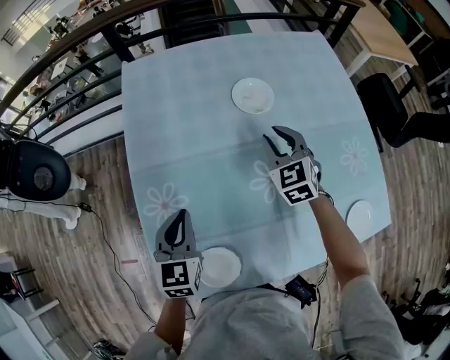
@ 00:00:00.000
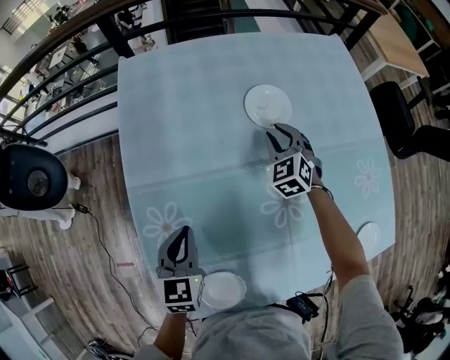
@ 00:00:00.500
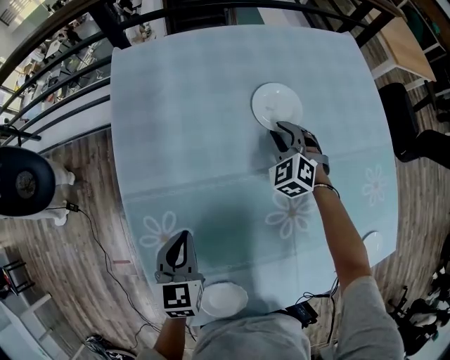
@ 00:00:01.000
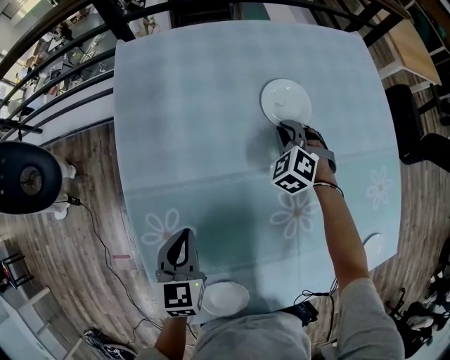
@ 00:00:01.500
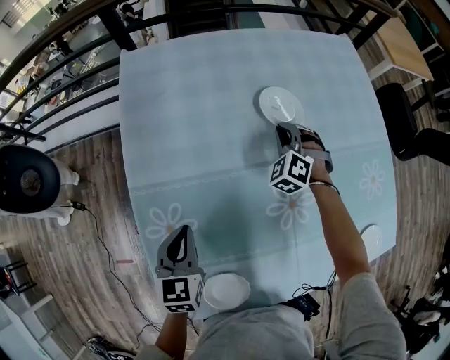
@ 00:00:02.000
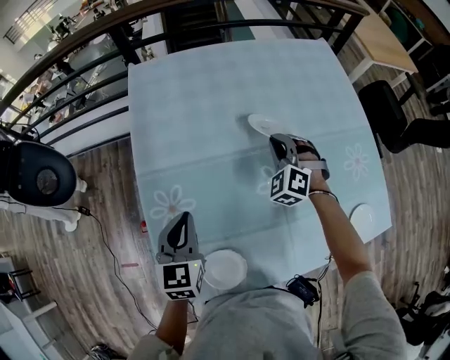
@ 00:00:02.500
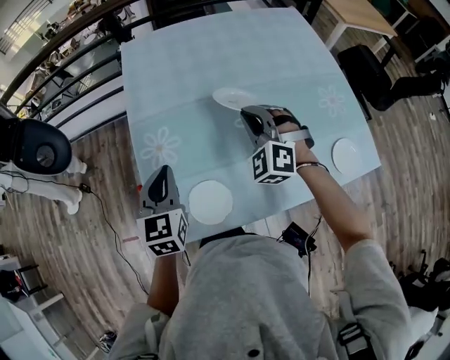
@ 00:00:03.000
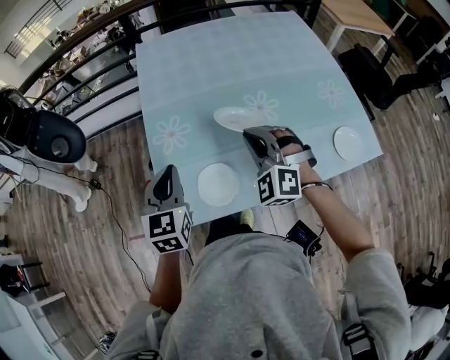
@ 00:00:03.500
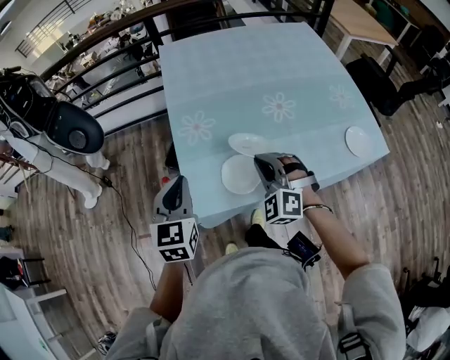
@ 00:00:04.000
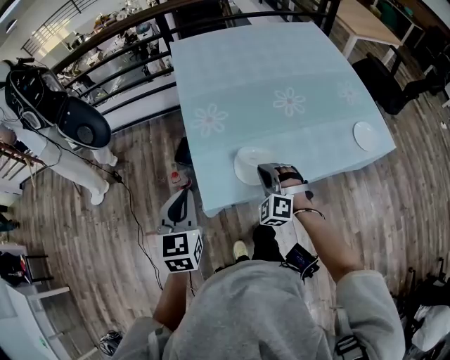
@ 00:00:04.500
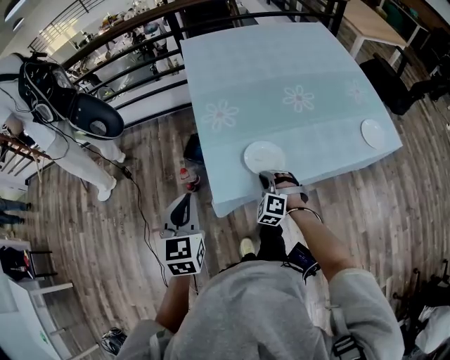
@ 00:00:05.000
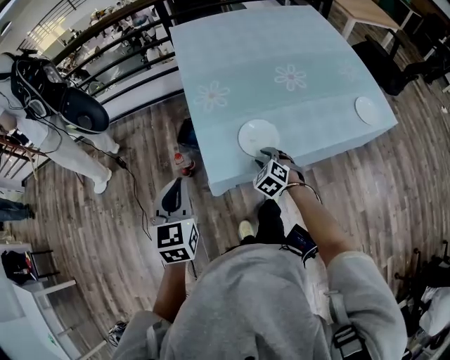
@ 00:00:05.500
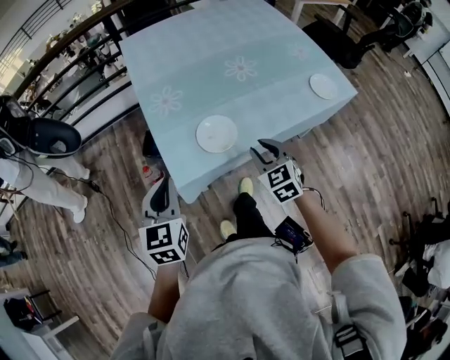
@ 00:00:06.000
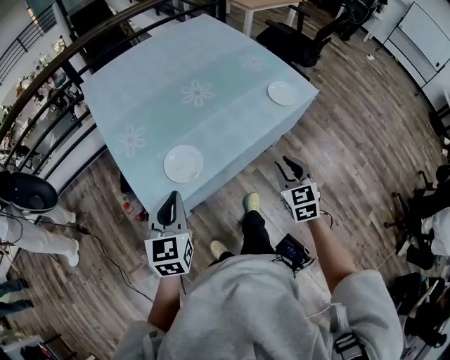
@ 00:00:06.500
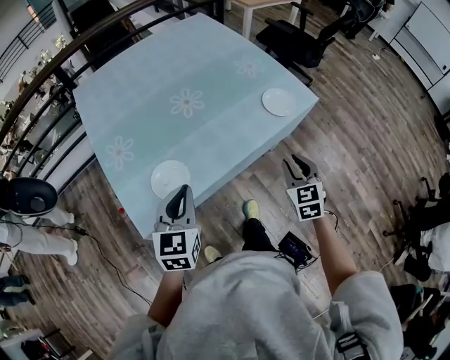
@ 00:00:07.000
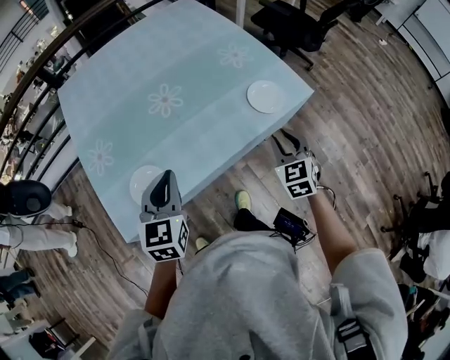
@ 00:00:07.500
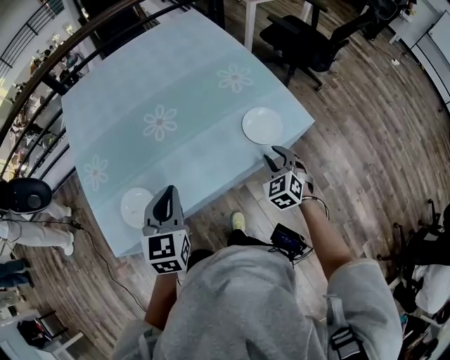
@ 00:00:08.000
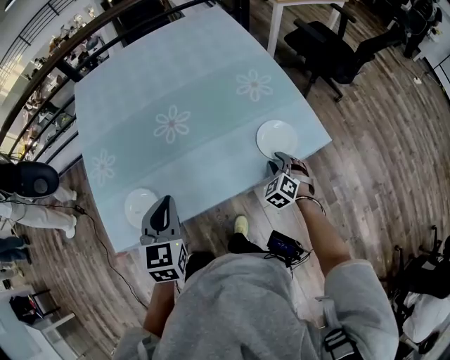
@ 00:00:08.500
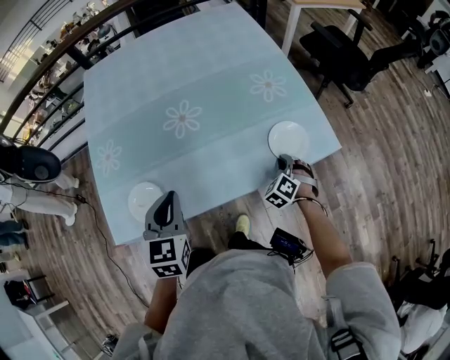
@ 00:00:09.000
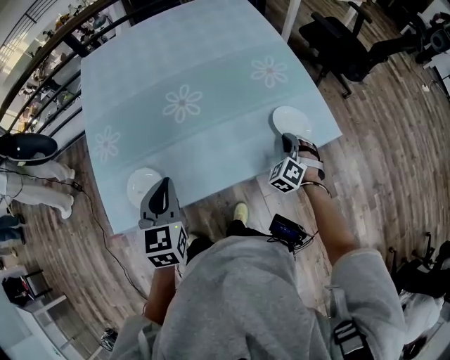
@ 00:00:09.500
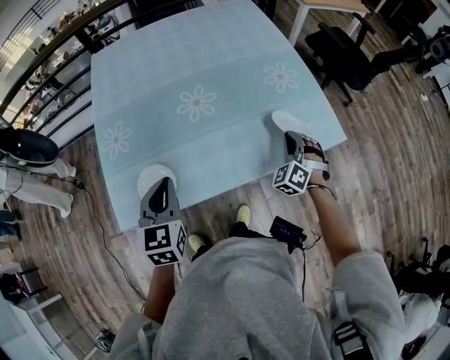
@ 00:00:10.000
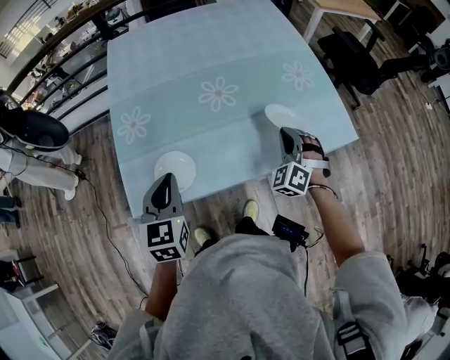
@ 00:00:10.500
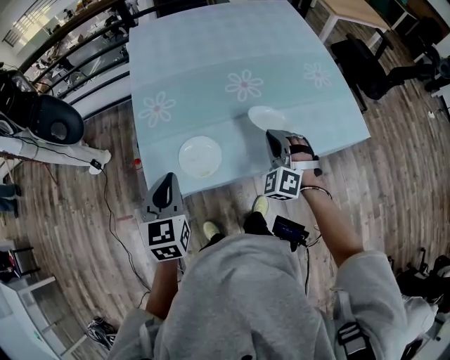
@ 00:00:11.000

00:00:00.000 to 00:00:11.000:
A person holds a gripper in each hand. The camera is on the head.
00:00:00.000 to 00:00:02.000: The left gripper heads downward, covering some 5 cm, while the right gripper is displaced downward and forward by about 15 cm, and swivels roughly 40 degrees.
00:00:02.000 to 00:00:03.500: The right gripper is displaced backward and upward by about 50 cm, and changes its angle by some 20 degrees; the left gripper moves backward and upward, about 25 cm.
00:00:03.500 to 00:00:05.500: The right gripper goes some 30 cm downward, backward and to the left, rotates approximately 40 degrees, and opens, while the left gripper shifts approximately 25 cm backward and to the left.
00:00:05.500 to 00:00:07.500: The two grippers travel together, approximately 40 cm. The left gripper swivels about 20 degrees; the right gripper swivels roughly 40 degrees.
00:00:07.500 to 00:00:09.000: The right gripper heads downward and forward, covering roughly 20 cm, and turns by about 40 degrees.
00:00:09.000 to 00:00:11.000: The right gripper heads to the left and upward, covering approximately 35 cm, and changes its angle by roughly 30 degrees; the left gripper goes roughly 25 cm to the left and backward.

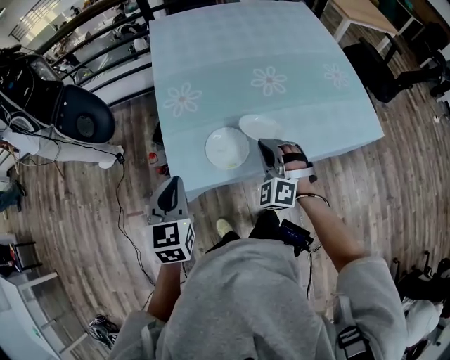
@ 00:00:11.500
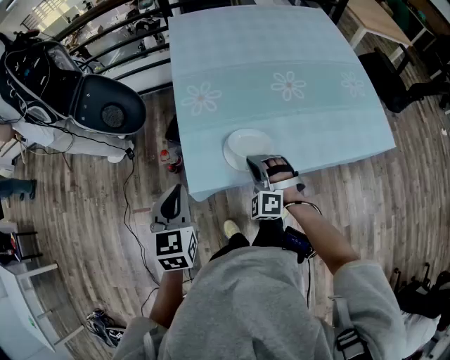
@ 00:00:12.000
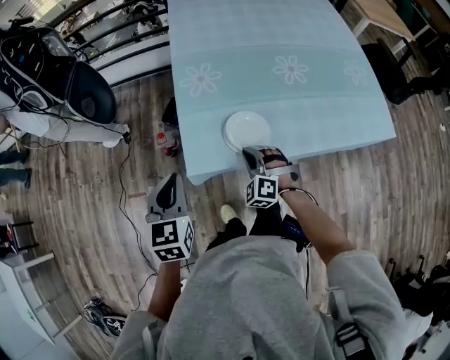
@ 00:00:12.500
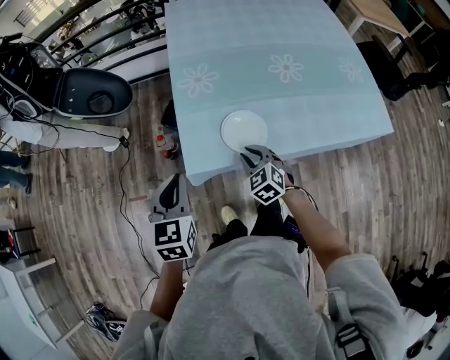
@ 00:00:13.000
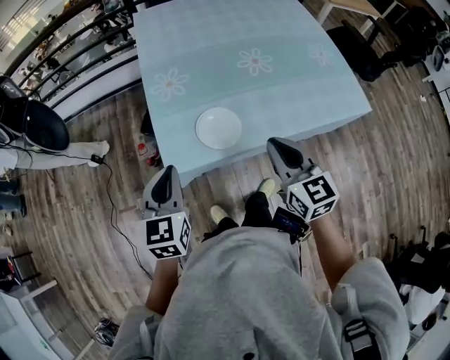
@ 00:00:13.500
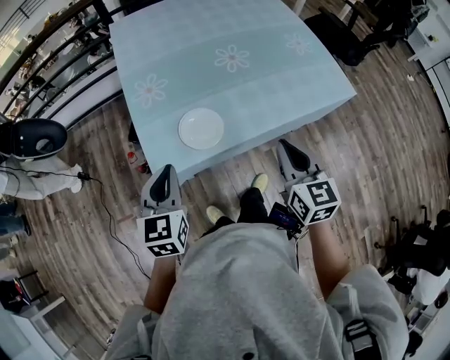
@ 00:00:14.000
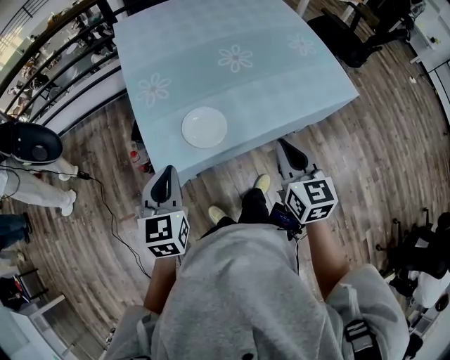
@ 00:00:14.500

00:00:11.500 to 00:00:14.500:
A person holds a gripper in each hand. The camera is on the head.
00:00:11.500 to 00:00:13.000: The right gripper heads to the left and downward, covering roughly 15 cm, and changes its angle by roughly 40 degrees, while the left gripper shifts by roughly 5 cm.
00:00:13.000 to 00:00:14.500: The left gripper moves to the right, approximately 10 cm. Meanwhile the right gripper moves upward, to the right and backward, approximately 30 cm, and changes its angle by roughly 50 degrees.

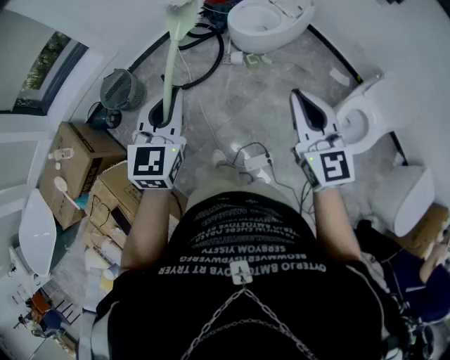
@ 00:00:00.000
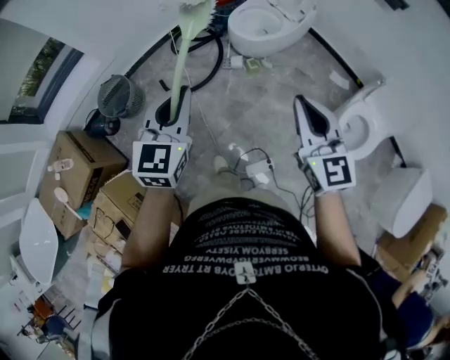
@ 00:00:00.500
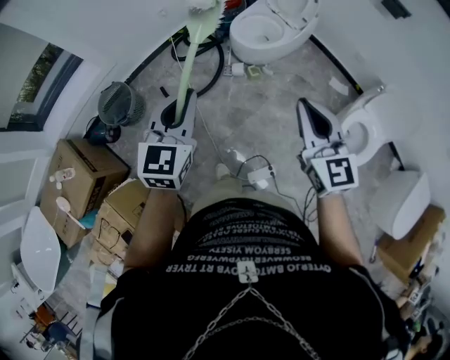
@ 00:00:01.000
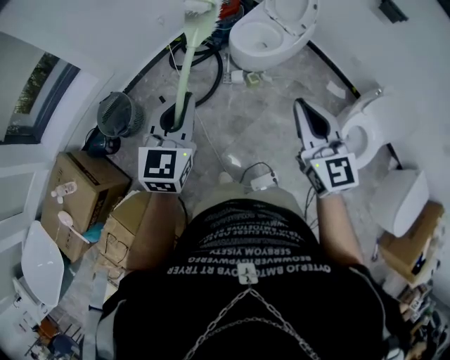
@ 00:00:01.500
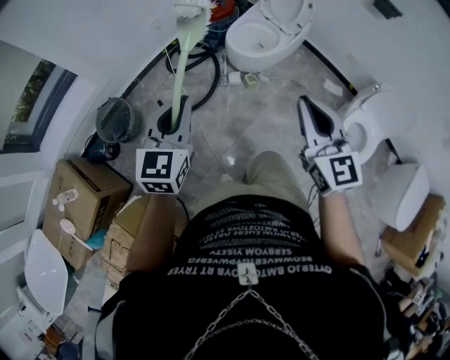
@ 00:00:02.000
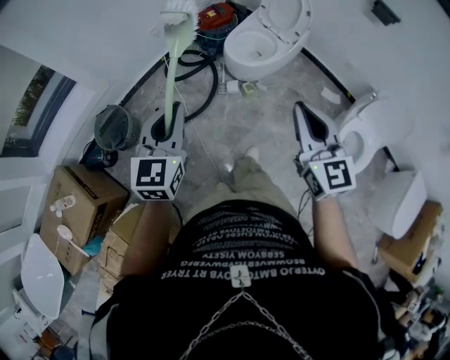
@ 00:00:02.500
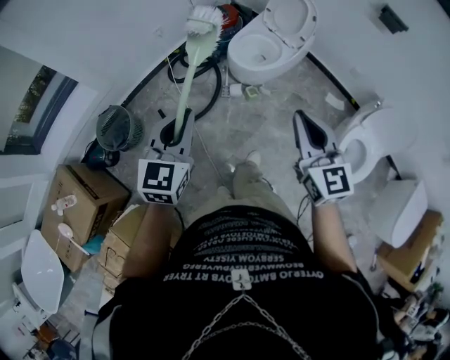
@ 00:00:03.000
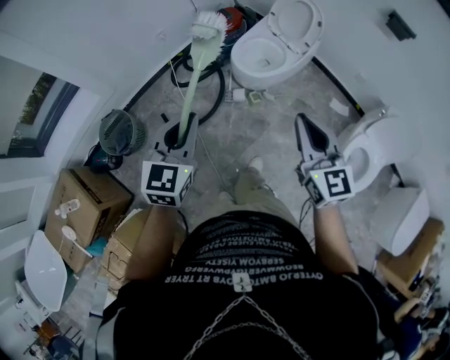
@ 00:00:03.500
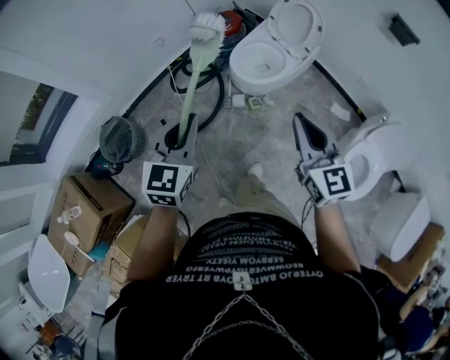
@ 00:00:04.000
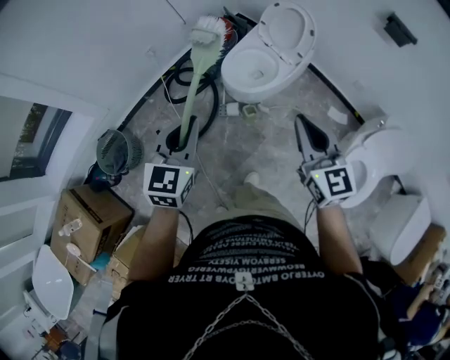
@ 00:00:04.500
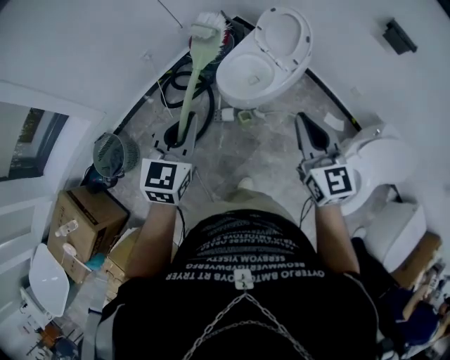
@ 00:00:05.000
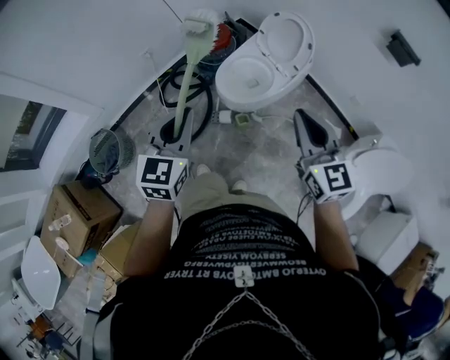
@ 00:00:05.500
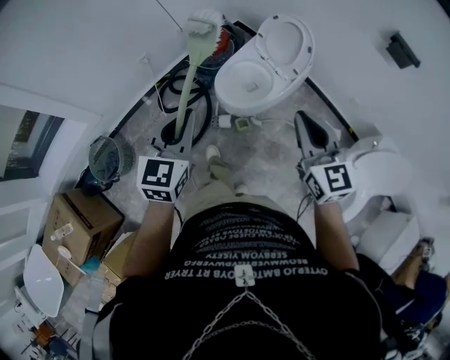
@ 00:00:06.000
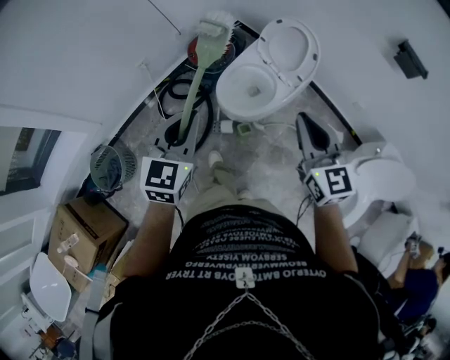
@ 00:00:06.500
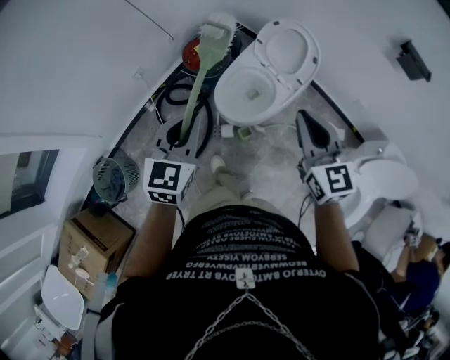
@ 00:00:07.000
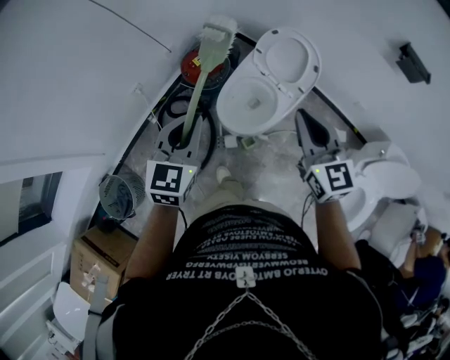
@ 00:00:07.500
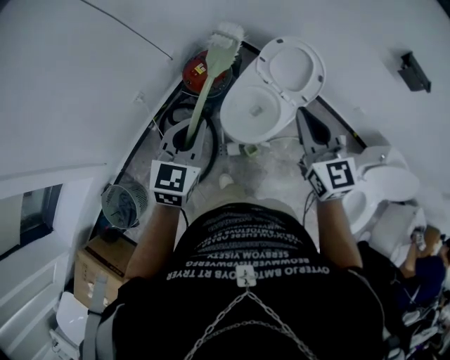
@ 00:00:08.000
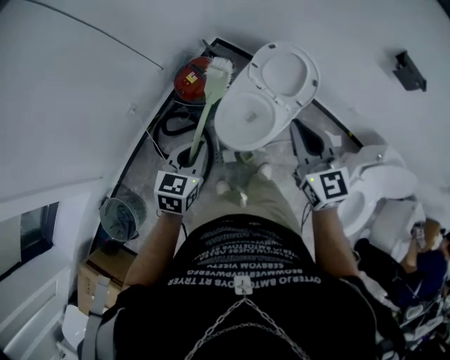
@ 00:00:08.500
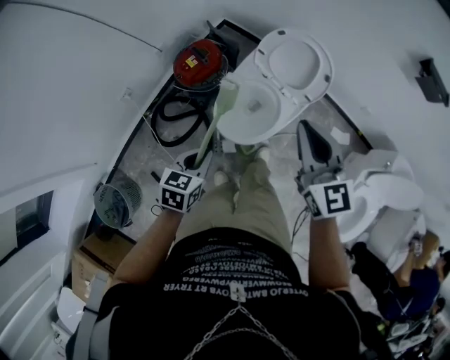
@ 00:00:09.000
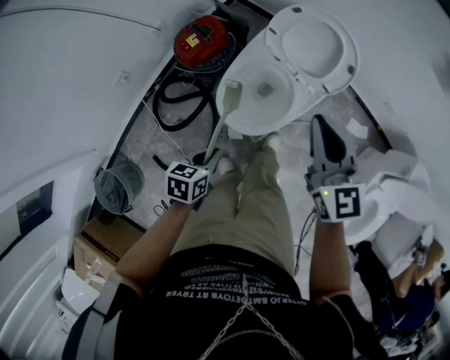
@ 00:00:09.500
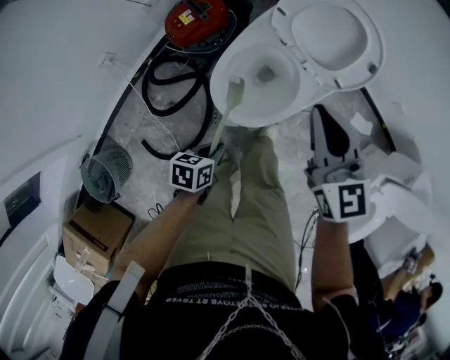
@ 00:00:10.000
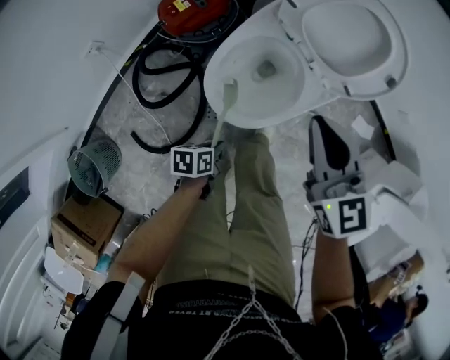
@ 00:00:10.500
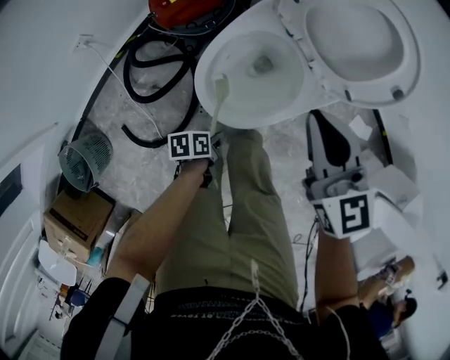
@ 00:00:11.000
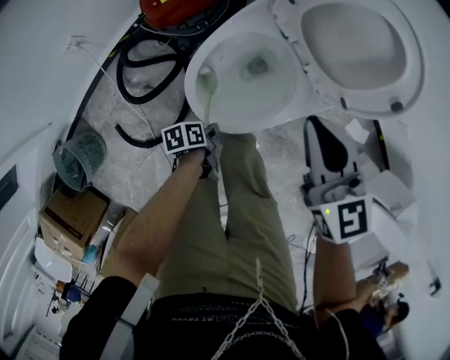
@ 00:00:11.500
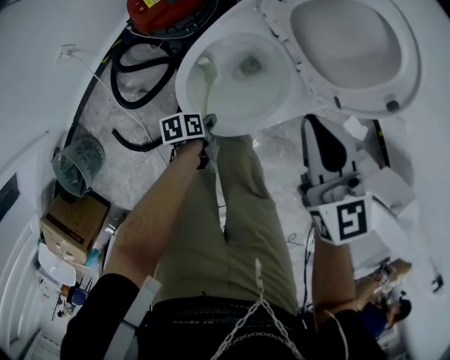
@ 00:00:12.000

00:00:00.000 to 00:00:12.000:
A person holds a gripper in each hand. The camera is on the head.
00:00:00.000 to 00:00:02.000: The grippers both shift forward and to the left by approximately 15 cm.
00:00:02.000 to 00:00:04.000: Both grippers travel together forward and to the right, roughly 15 cm.
00:00:04.000 to 00:00:06.000: Both grippers move forward and to the right, approximately 20 cm.
00:00:06.000 to 00:00:08.000: Both grippers travel together forward, about 25 cm.
00:00:08.000 to 00:00:10.000: The left gripper goes about 40 cm downward, and angles its fingers downward, by roughly 30 degrees. Meanwhile the right gripper travels downward and forward by some 25 cm.
00:00:10.000 to 00:00:12.000: The left gripper shifts roughly 25 cm downward and forward, and changes its angle by roughly 30 degrees. Meanwhile the right gripper travels downward and forward by about 15 cm.
